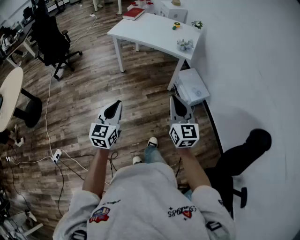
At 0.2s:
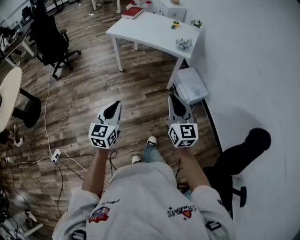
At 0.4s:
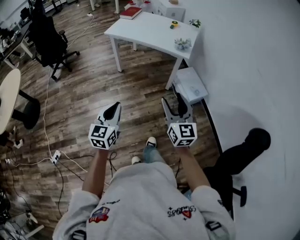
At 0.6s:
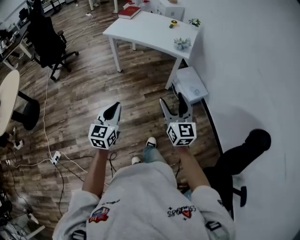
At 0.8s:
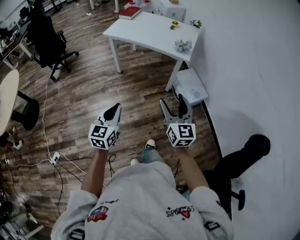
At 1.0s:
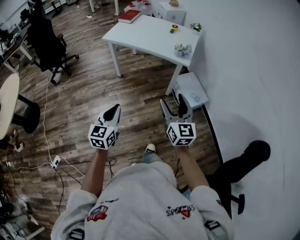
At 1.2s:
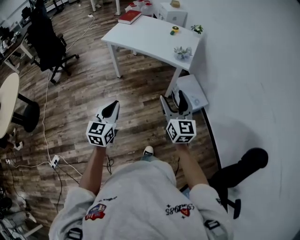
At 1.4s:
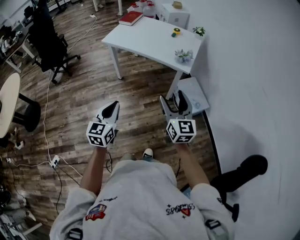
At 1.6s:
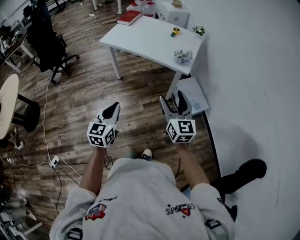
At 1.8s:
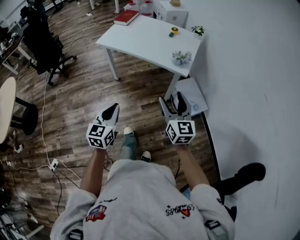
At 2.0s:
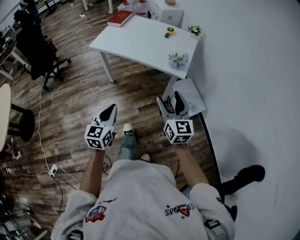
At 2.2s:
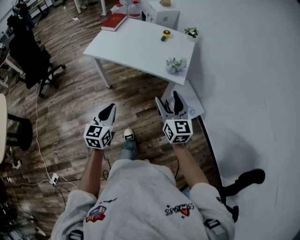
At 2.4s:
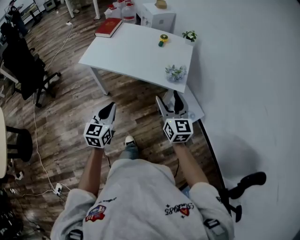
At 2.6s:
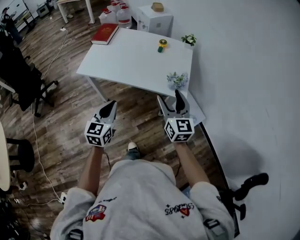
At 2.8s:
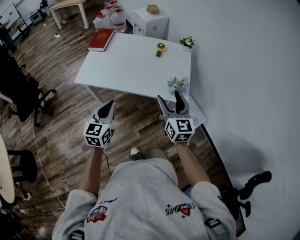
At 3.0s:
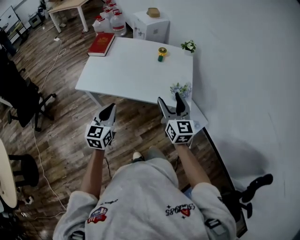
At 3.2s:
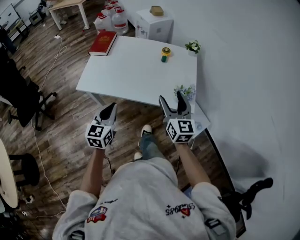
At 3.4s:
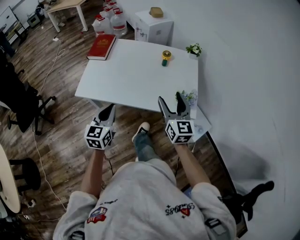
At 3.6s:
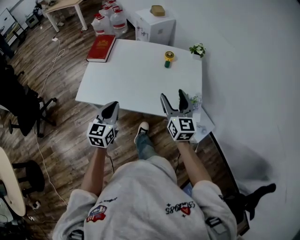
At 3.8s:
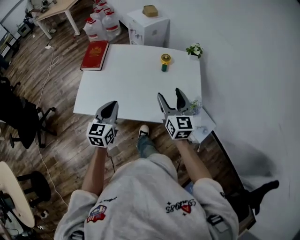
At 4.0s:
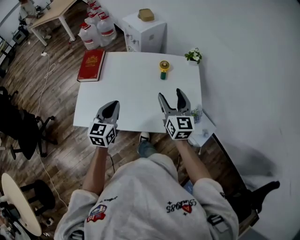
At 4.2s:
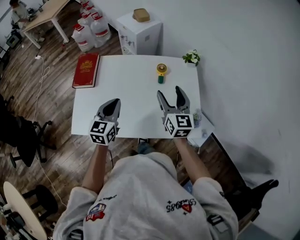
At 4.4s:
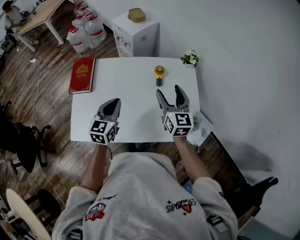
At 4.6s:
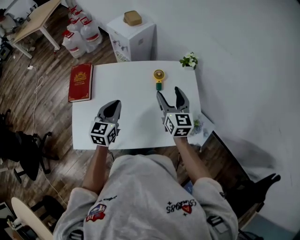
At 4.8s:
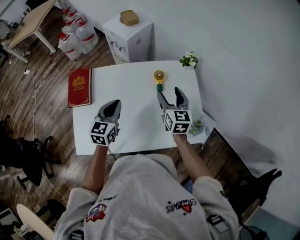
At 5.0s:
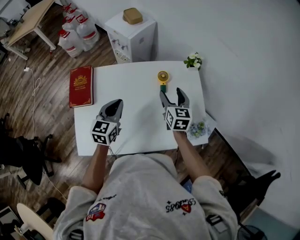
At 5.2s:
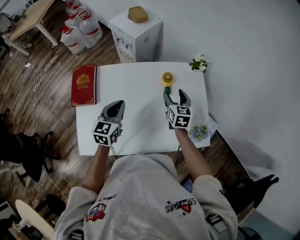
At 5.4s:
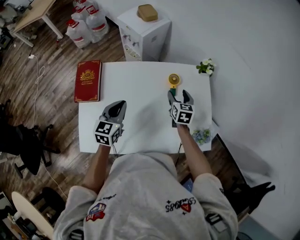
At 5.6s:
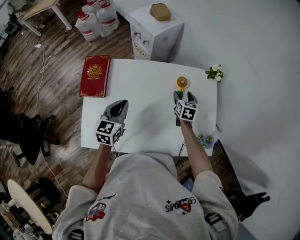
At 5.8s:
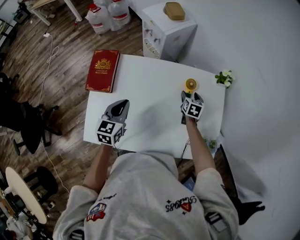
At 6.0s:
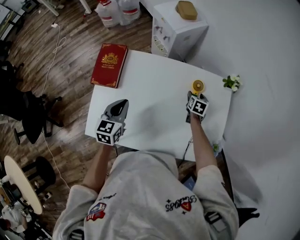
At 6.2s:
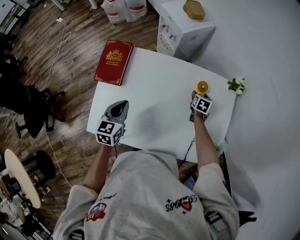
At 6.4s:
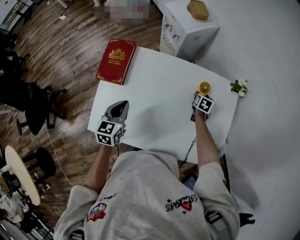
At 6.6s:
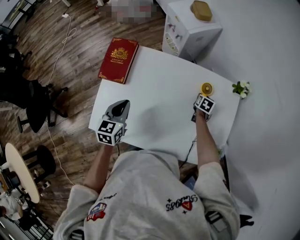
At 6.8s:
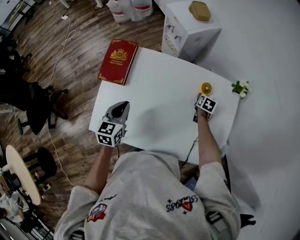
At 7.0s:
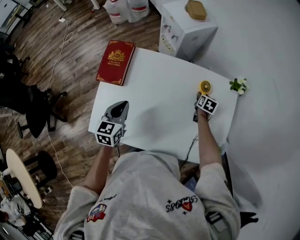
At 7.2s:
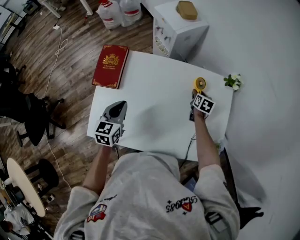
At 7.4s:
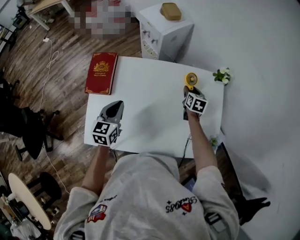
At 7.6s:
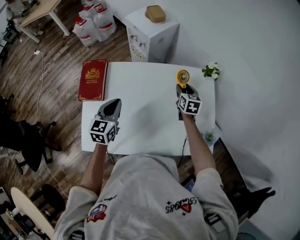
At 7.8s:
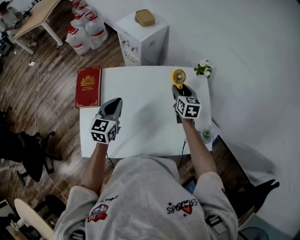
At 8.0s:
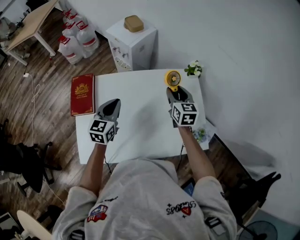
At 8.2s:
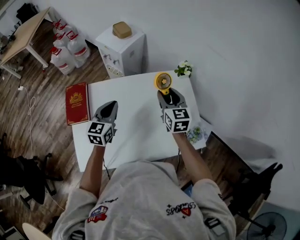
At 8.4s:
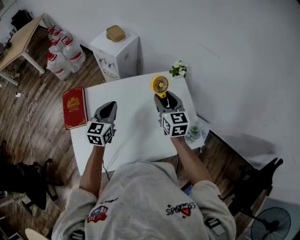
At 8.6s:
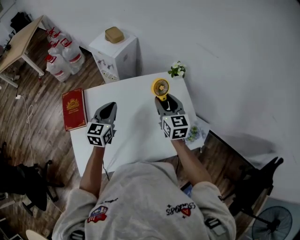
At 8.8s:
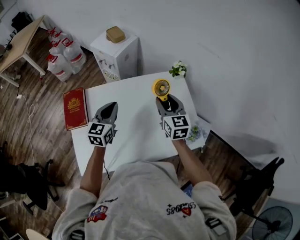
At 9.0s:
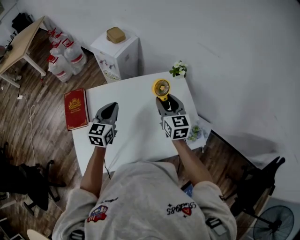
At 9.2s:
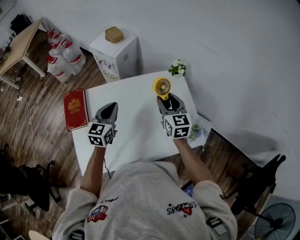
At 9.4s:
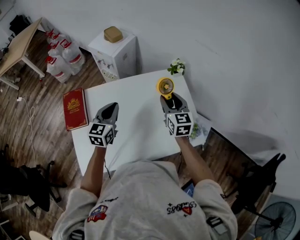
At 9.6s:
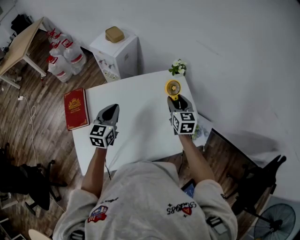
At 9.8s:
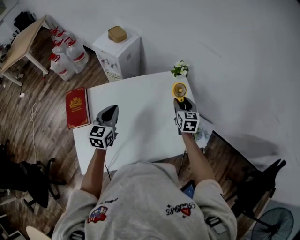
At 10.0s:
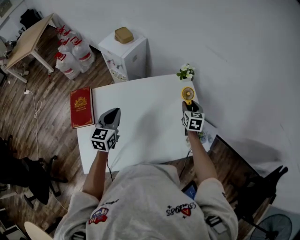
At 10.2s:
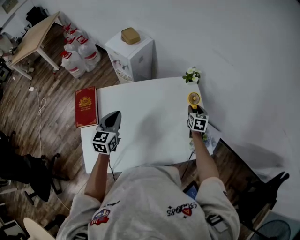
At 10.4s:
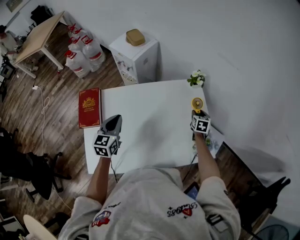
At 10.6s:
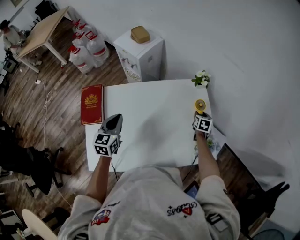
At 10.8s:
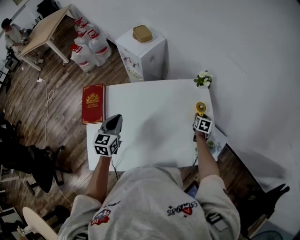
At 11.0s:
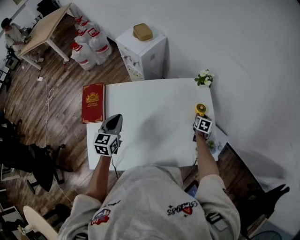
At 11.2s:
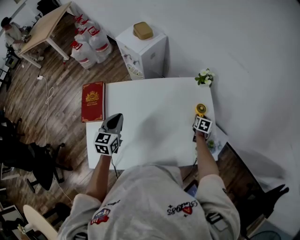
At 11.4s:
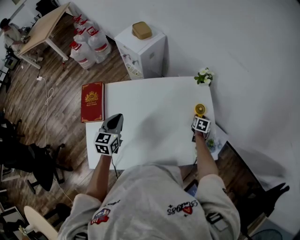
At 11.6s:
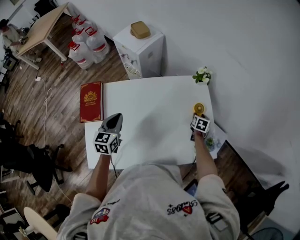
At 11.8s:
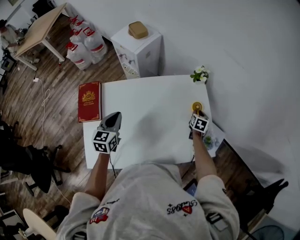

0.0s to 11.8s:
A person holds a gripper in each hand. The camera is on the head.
0.0s to 1.4s: The grippers both shift forward by roughly 20 cm. The right gripper opens up.
1.4s to 3.0s: Both grippers are carried forward, roughly 50 cm.
3.0s to 4.4s: Both grippers travel together forward, some 40 cm.
4.4s to 6.0s: The right gripper travels downward and forward by about 35 cm, and angles its fingers downward, by roughly 40 degrees; the left gripper goes approximately 20 cm to the left and downward.
6.0s to 7.4s: The right gripper heads upward, covering about 5 cm, and closes up.
7.4s to 8.8s: The left gripper is displaced to the right, upward and forward by some 15 cm, and rotates some 20 degrees. The right gripper travels upward and backward by about 25 cm, and rotates approximately 30 degrees.
8.8s to 10.4s: The left gripper ends up some 5 cm from where it was, while the right gripper travels downward and to the right by roughly 25 cm, and changes its angle by roughly 30 degrees.

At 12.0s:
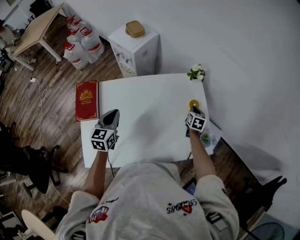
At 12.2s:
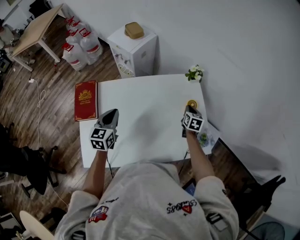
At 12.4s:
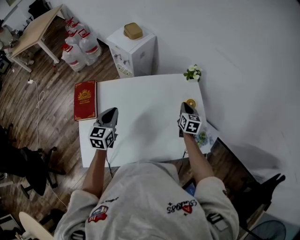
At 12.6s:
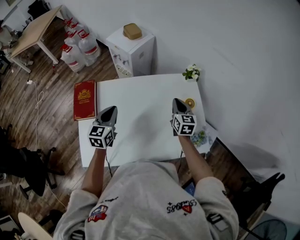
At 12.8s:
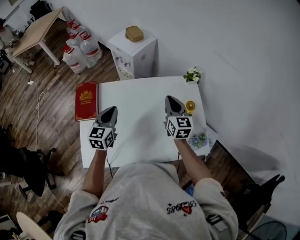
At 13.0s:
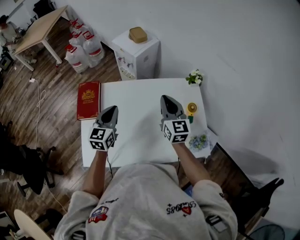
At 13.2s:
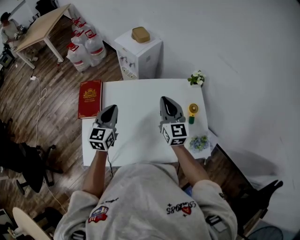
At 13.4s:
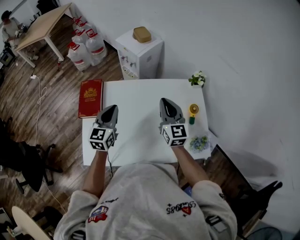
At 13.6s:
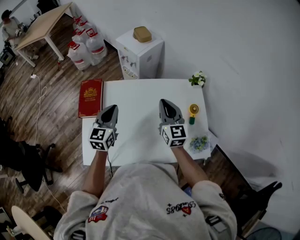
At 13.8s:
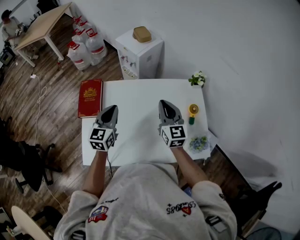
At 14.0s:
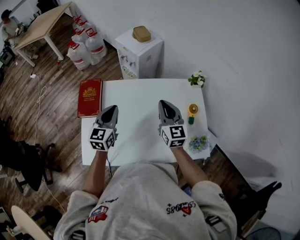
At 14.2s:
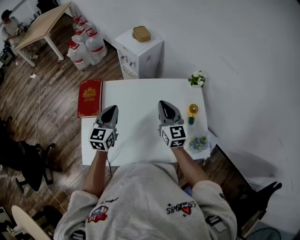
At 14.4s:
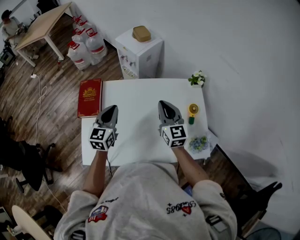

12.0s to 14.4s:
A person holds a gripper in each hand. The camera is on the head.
12.0s to 13.2s: The right gripper shifts roughly 35 cm upward and to the left, and points its fingers approximately 40 degrees further upward, while the left gripper is displaced upward by approximately 5 cm.
13.2s to 14.4s: The grippers stay close to where they were, moving slightly.

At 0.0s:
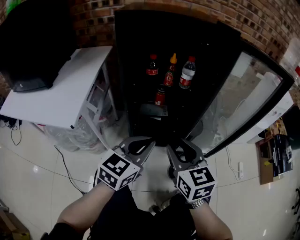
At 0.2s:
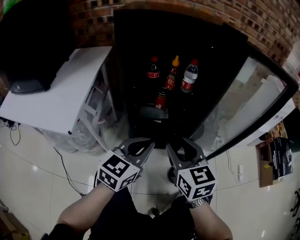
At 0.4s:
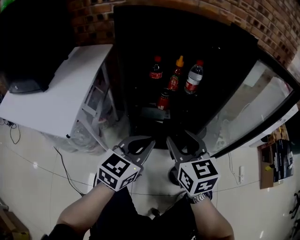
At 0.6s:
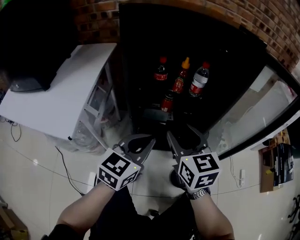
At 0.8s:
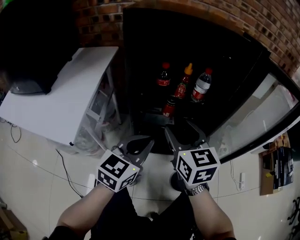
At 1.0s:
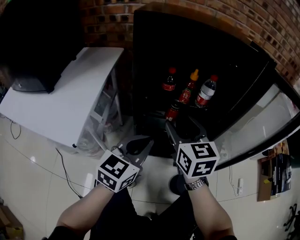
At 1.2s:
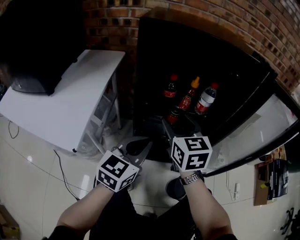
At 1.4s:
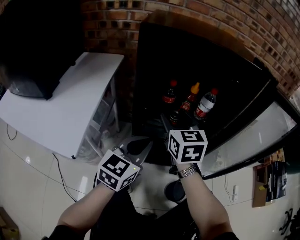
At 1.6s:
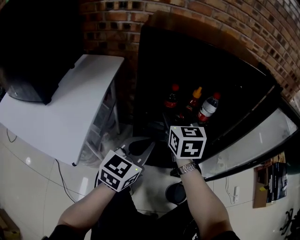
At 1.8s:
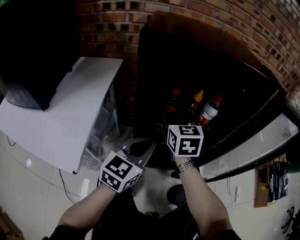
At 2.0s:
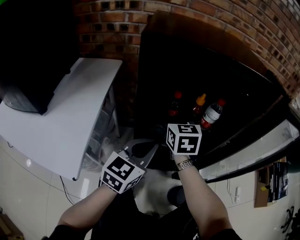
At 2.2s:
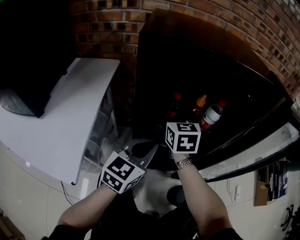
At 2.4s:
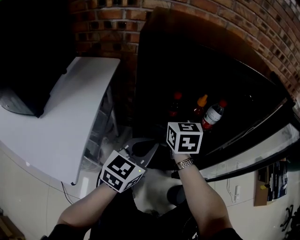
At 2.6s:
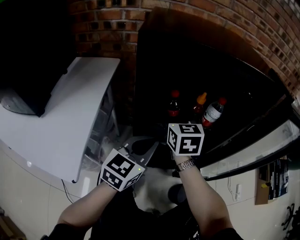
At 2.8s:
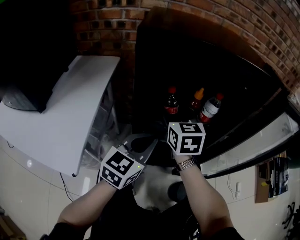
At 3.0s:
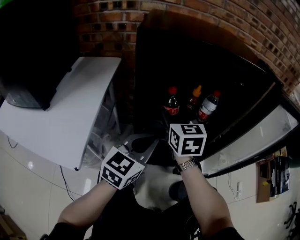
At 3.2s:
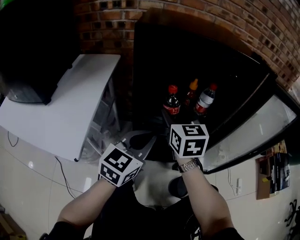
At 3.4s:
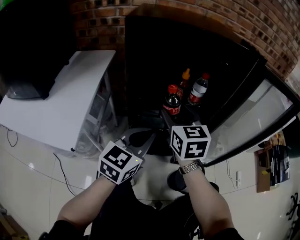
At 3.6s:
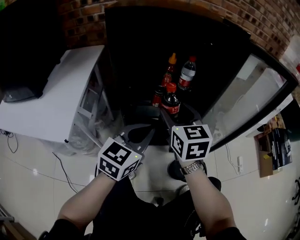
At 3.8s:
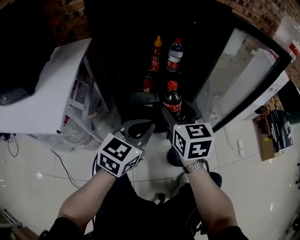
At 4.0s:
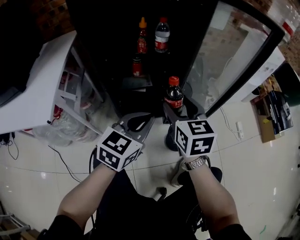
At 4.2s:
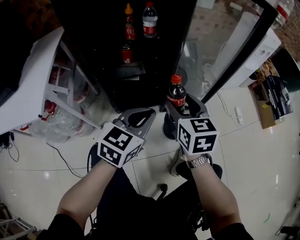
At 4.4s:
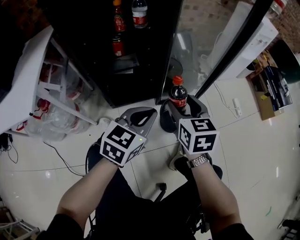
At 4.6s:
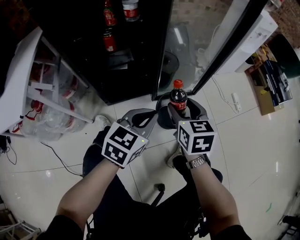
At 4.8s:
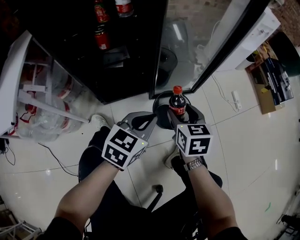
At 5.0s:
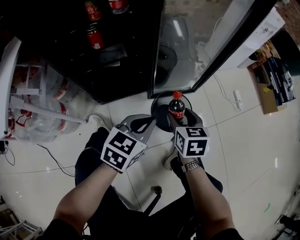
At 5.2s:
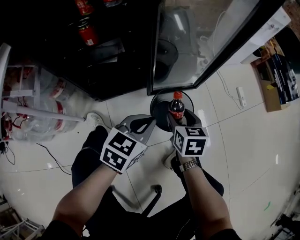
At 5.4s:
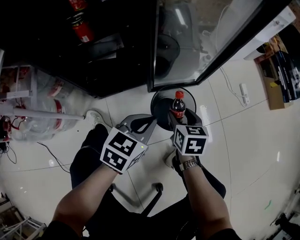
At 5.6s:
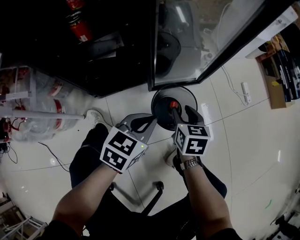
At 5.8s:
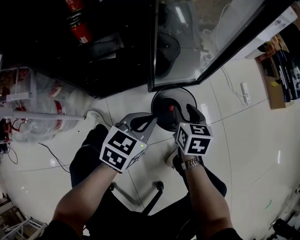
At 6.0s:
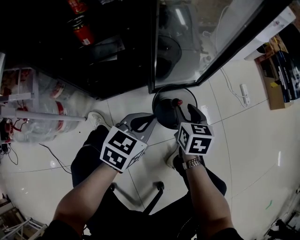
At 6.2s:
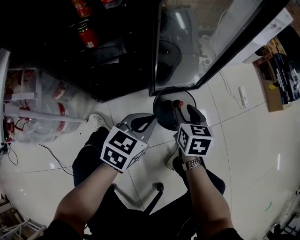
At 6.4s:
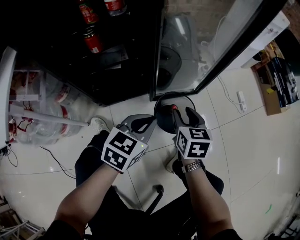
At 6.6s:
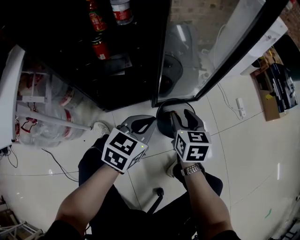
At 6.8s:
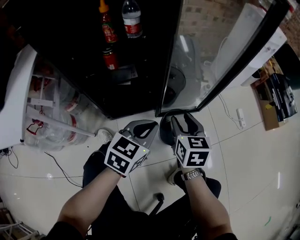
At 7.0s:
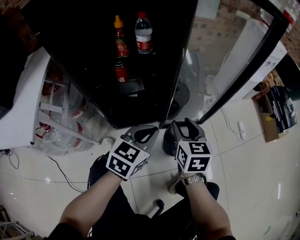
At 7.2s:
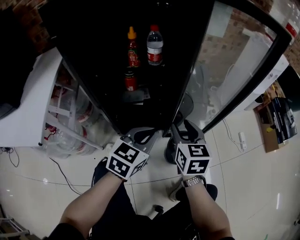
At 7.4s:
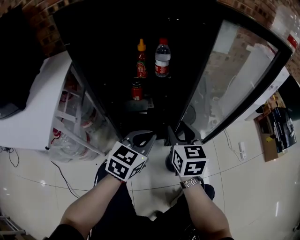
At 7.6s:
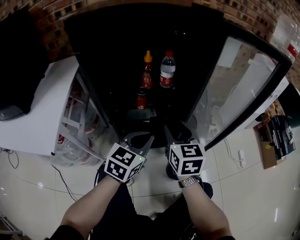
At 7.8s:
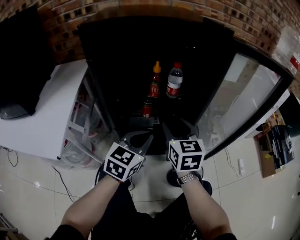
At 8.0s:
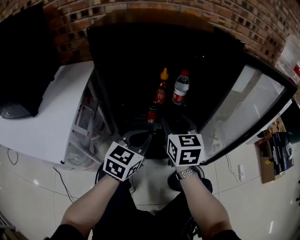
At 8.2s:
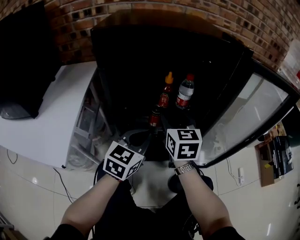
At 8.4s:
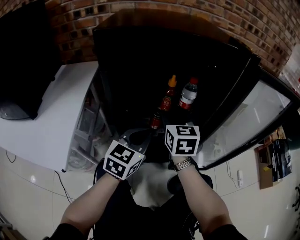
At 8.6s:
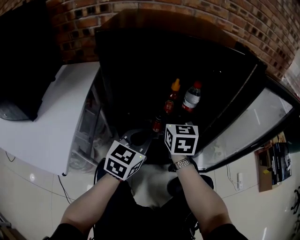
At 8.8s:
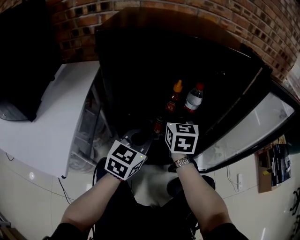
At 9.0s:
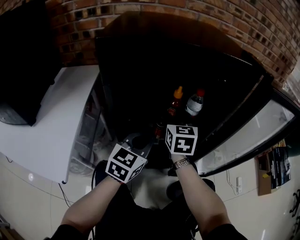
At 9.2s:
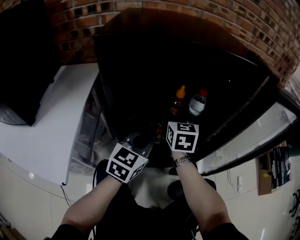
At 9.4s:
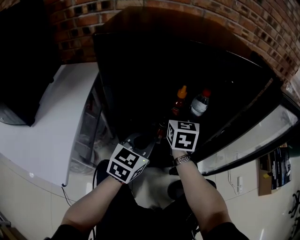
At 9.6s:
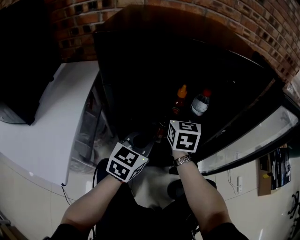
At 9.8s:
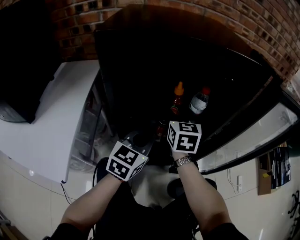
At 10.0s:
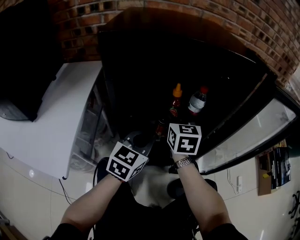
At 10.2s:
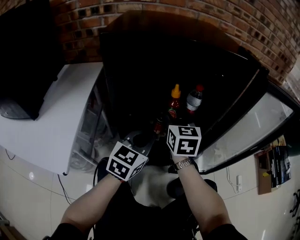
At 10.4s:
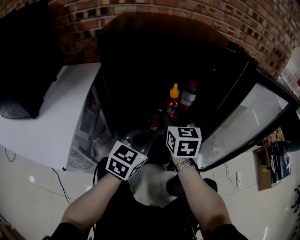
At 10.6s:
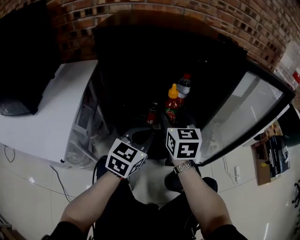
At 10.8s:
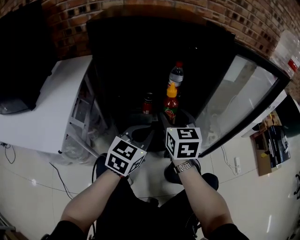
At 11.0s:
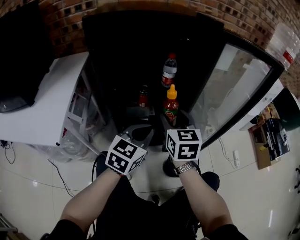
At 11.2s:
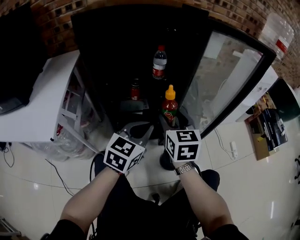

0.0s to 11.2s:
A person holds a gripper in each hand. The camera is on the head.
0.0s to 1.6s: The right gripper travels forward and to the left by approximately 30 cm, and opens. The left gripper heads forward and to the left, covering about 15 cm.
1.6s to 3.2s: The right gripper travels forward and back again, roughly 5 cm each way.
3.2s to 4.8s: Both grippers move to the right, downward and backward, some 40 cm. The left gripper swivels roughly 30 degrees; the right gripper turns by roughly 30 degrees.
6.4s to 8.0s: The left gripper is displaced to the left and upward by approximately 30 cm, and swivels some 30 degrees; the right gripper moves upward and to the left, approximately 40 cm, and swivels approximately 30 degrees.
8.0s to 9.6s: The right gripper travels forward and to the left by about 15 cm. The left gripper shifts some 10 cm forward and to the left.
9.6s to 11.2s: The two grippers go approximately 25 cm backward and to the right.
